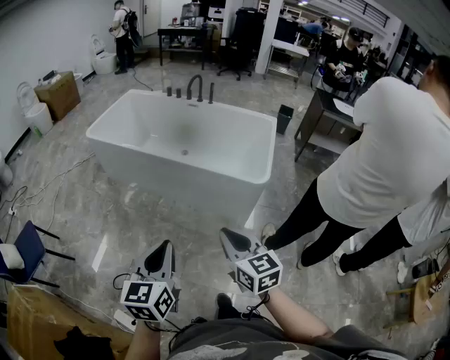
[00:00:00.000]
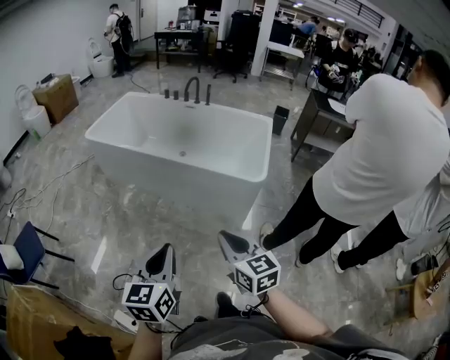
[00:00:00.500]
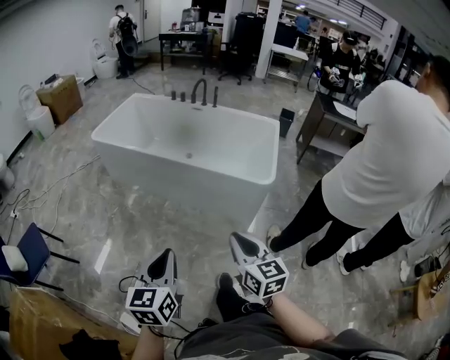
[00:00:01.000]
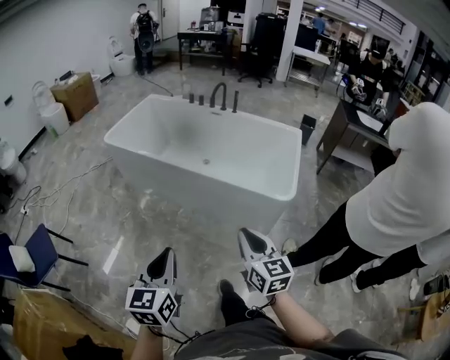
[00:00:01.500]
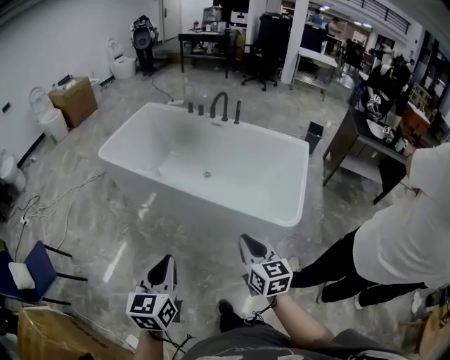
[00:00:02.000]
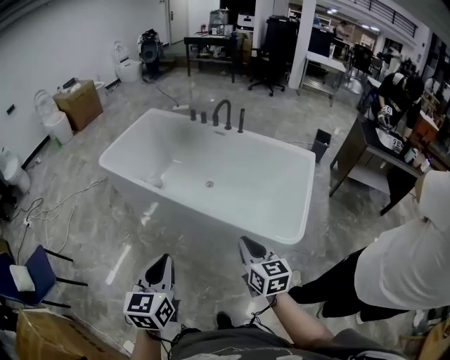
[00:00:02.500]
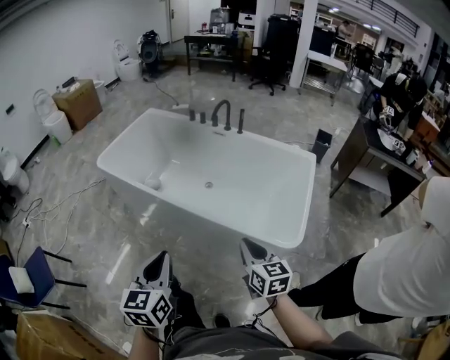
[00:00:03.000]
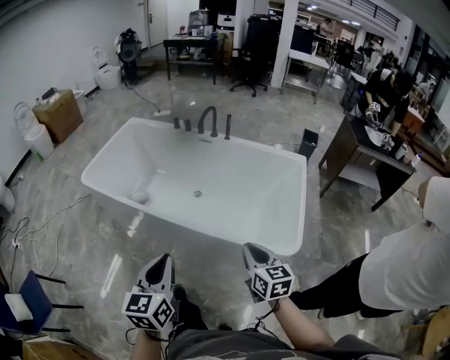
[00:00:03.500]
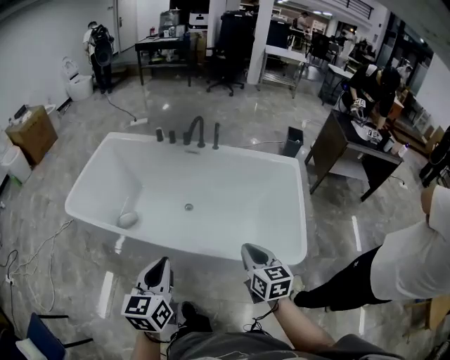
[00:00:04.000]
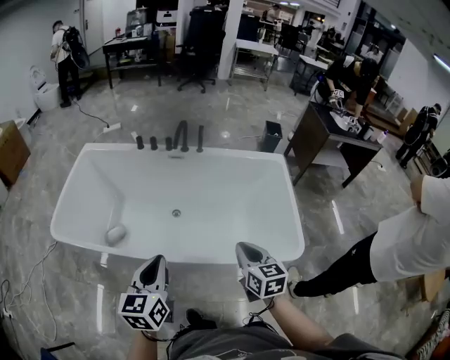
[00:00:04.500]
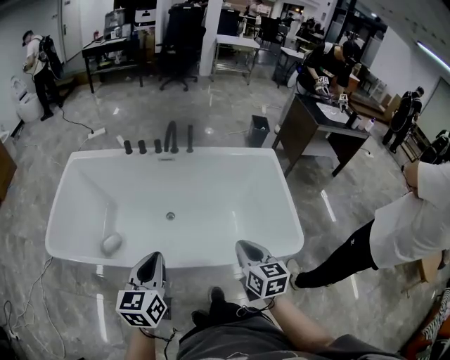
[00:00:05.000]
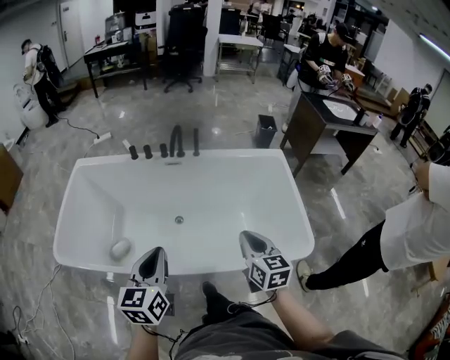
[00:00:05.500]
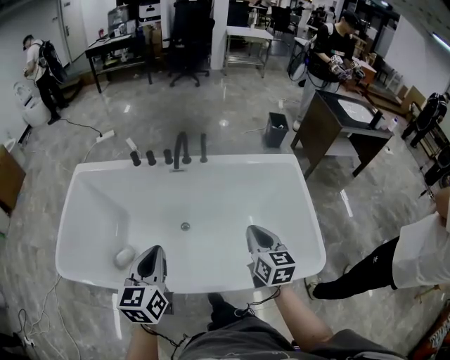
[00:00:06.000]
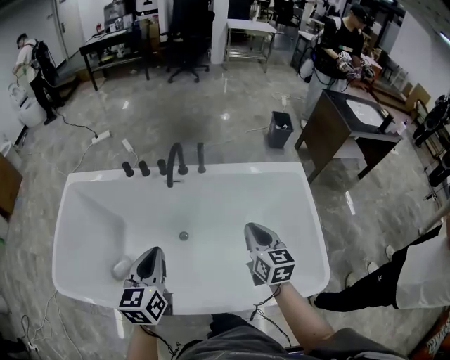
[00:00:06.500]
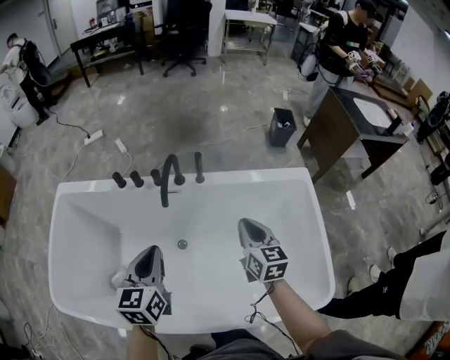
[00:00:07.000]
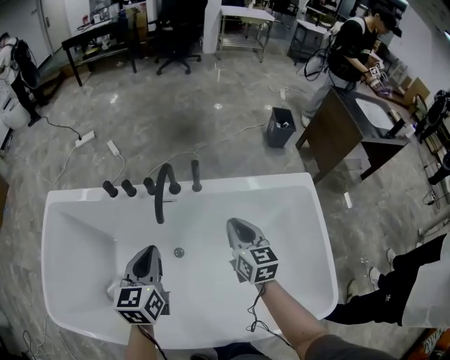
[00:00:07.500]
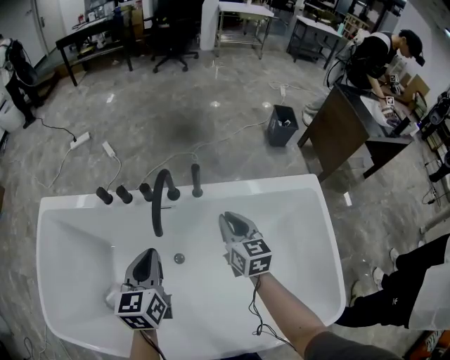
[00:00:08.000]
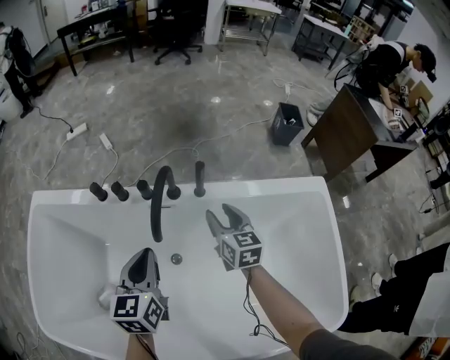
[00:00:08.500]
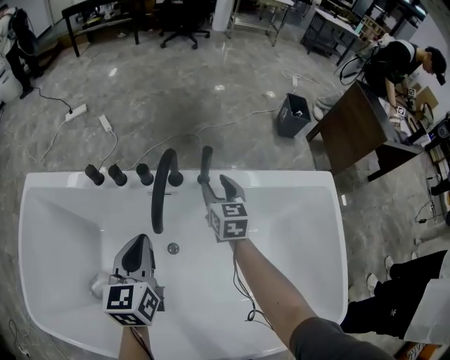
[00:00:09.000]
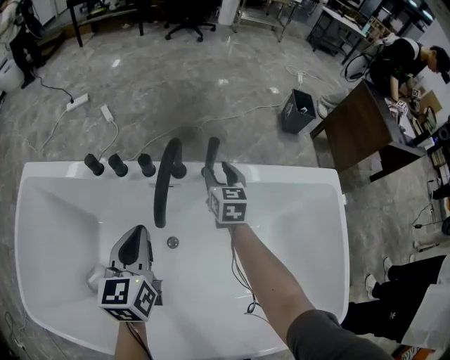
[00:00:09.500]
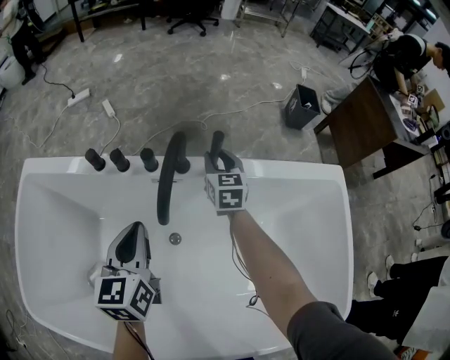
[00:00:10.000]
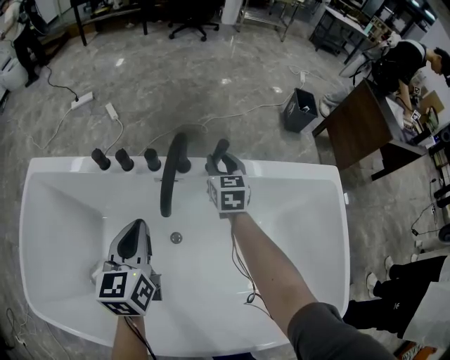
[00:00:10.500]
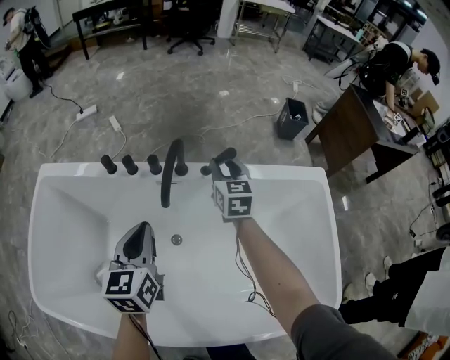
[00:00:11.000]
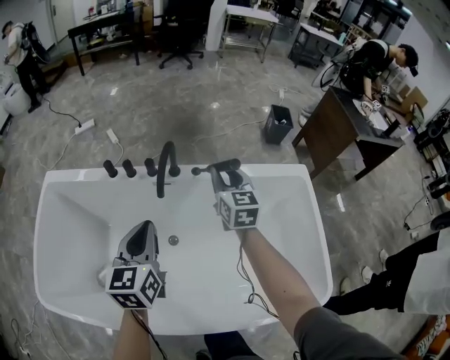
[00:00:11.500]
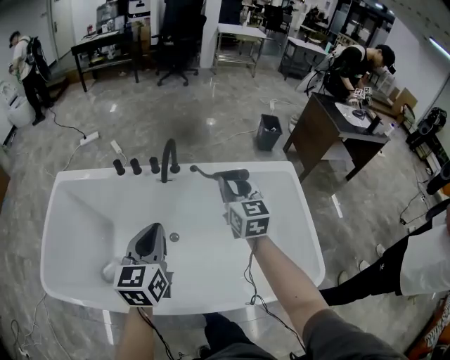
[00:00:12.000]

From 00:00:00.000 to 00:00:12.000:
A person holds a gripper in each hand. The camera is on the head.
From 00:00:00.000 to 00:00:02.000: Both grippers move forward, some 25 cm.
From 00:00:02.000 to 00:00:04.000: The two grippers go some 30 cm forward.
From 00:00:04.000 to 00:00:06.000: The grippers both shift forward by roughly 25 cm.
From 00:00:06.000 to 00:00:08.000: The right gripper heads forward, covering some 40 cm, while the left gripper shifts roughly 40 cm forward and downward.
From 00:00:08.000 to 00:00:10.000: The right gripper moves forward and downward, some 20 cm, and opens up, while the left gripper heads downward and forward, covering about 10 cm.
From 00:00:10.000 to 00:00:12.000: The two grippers go about 40 cm backward and upward.

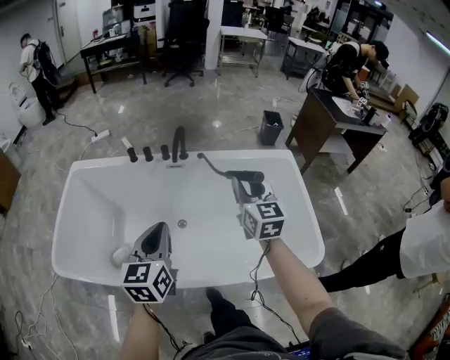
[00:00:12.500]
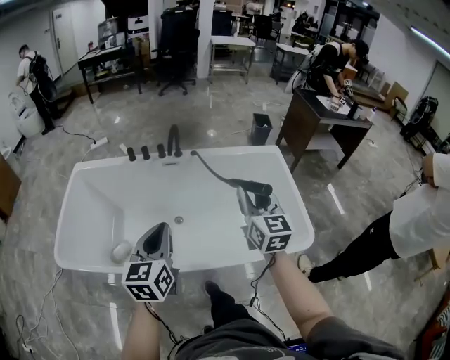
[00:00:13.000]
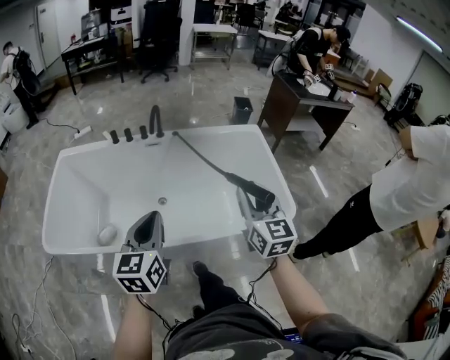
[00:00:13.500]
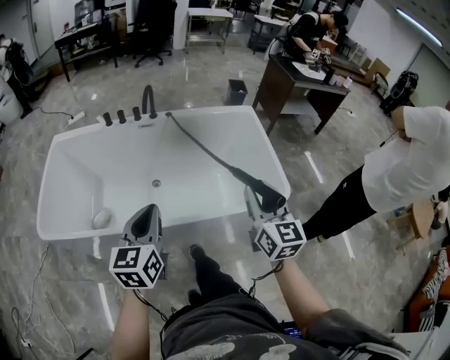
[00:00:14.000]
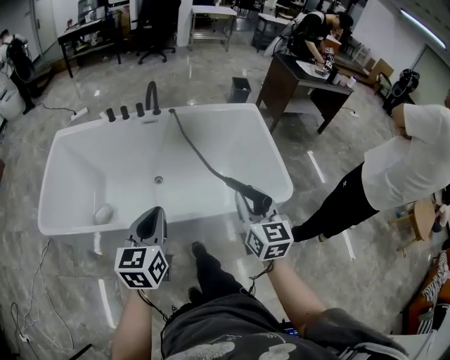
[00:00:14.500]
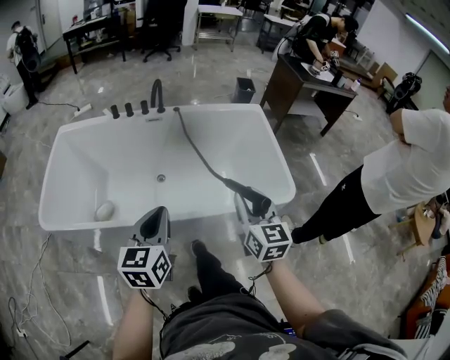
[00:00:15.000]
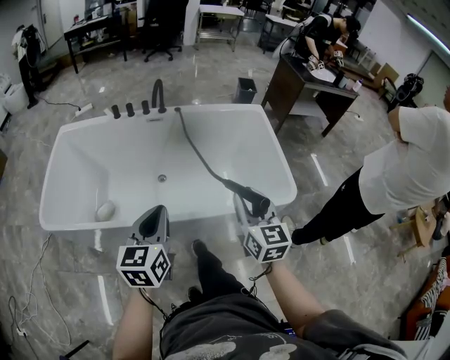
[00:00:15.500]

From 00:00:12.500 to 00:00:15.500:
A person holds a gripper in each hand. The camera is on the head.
From 00:00:12.500 to 00:00:14.000: The left gripper travels backward by approximately 20 cm. The right gripper heads backward, covering roughly 35 cm.
From 00:00:14.000 to 00:00:15.500: The right gripper travels downward by roughly 5 cm.

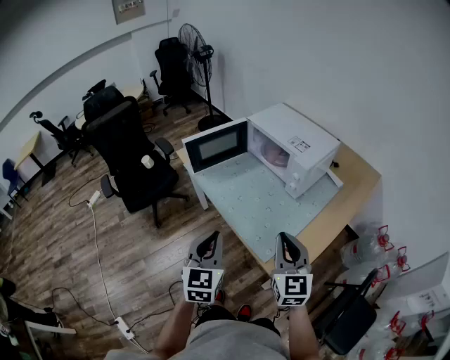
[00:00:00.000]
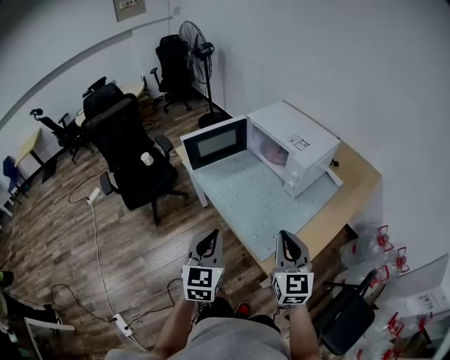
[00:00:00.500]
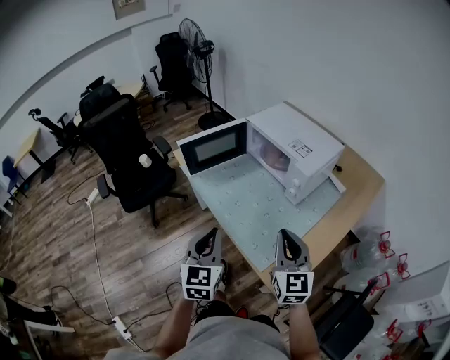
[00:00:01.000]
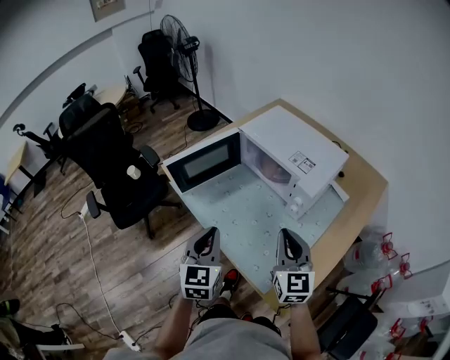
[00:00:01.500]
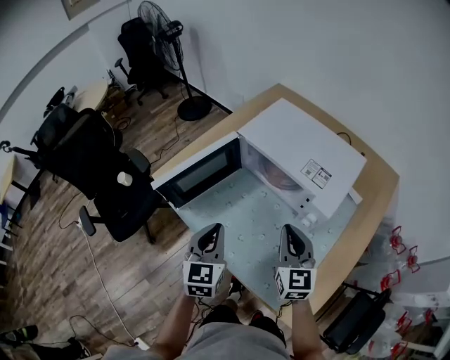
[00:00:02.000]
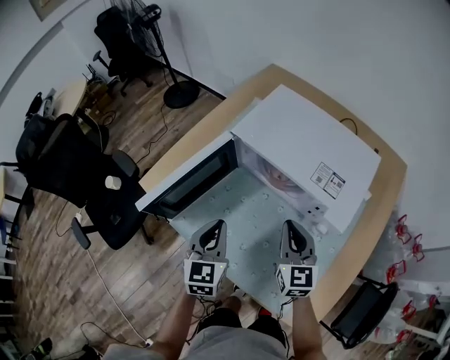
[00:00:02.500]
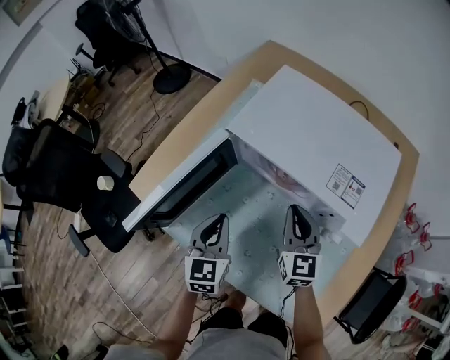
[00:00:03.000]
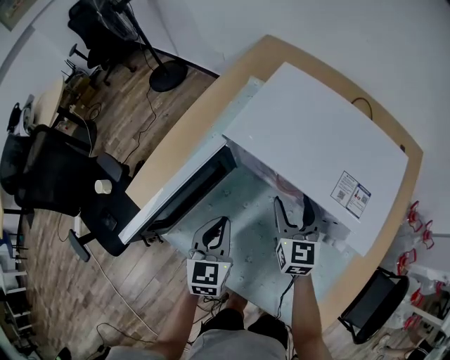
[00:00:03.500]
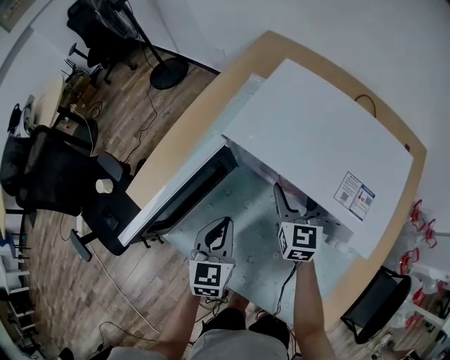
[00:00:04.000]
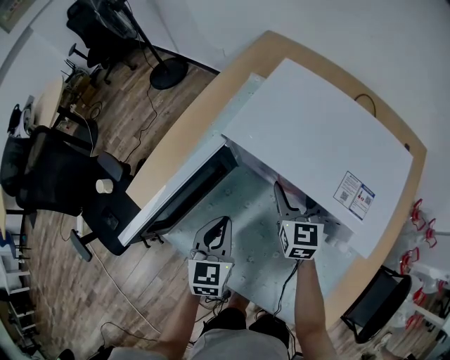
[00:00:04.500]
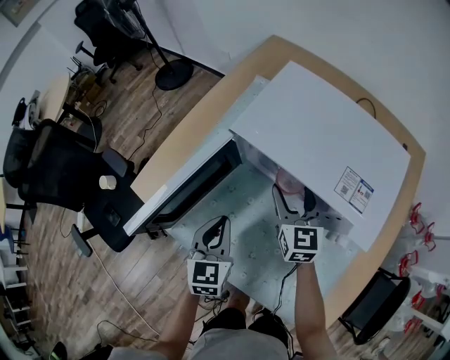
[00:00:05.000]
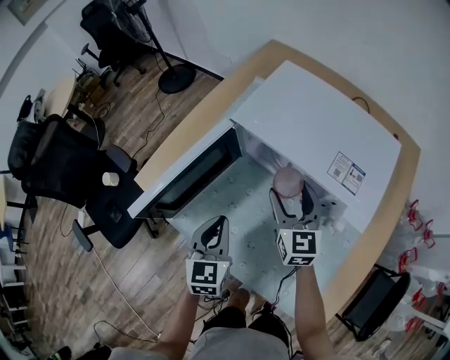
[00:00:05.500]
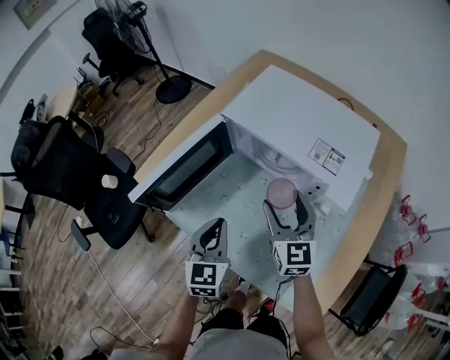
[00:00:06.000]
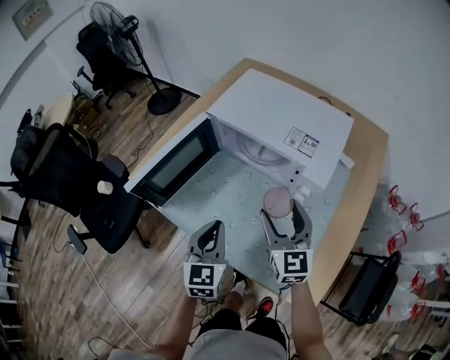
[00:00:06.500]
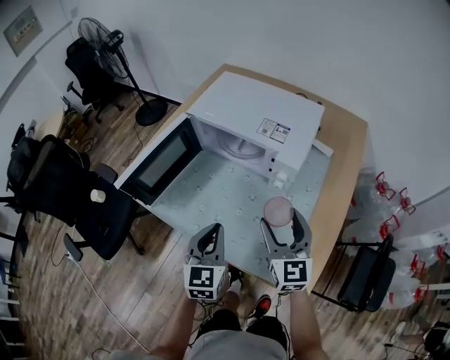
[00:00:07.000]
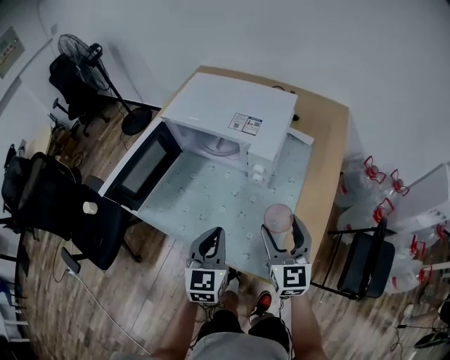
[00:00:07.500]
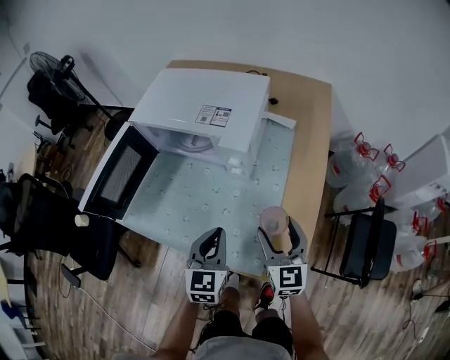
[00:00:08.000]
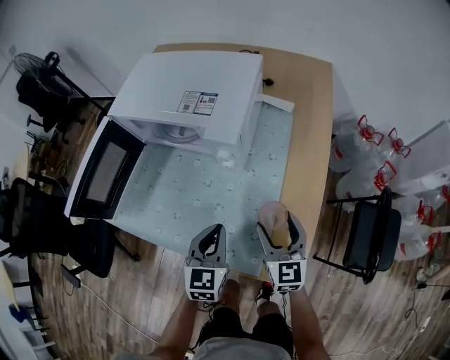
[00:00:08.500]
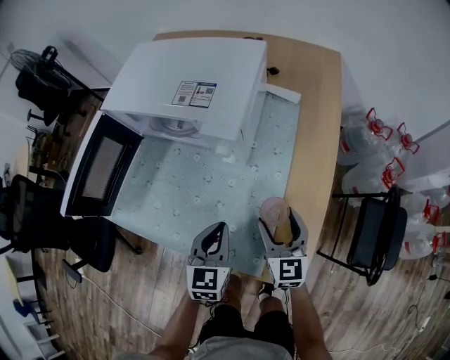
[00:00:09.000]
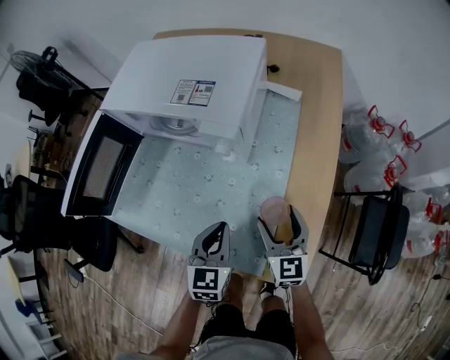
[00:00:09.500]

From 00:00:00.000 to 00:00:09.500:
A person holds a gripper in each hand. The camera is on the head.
From 00:00:00.000 to 00:00:02.000: Both grippers travel together forward, about 30 cm.
From 00:00:02.000 to 00:00:04.000: The two grippers go roughly 25 cm forward and downward. The right gripper opens up.
From 00:00:04.000 to 00:00:05.500: The grippers both shift backward by about 5 cm.
From 00:00:05.500 to 00:00:07.500: The left gripper moves to the right and backward, about 25 cm; the right gripper moves backward and to the right, some 30 cm.
From 00:00:07.500 to 00:00:09.500: The right gripper shifts roughly 15 cm downward. Meanwhile the left gripper is displaced downward and to the right by approximately 15 cm.

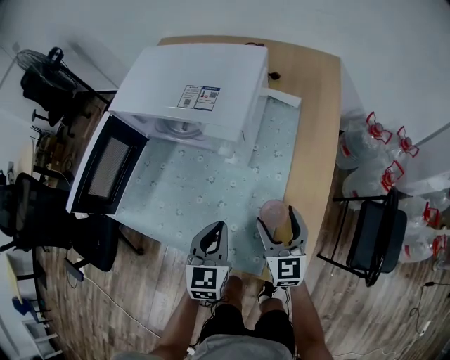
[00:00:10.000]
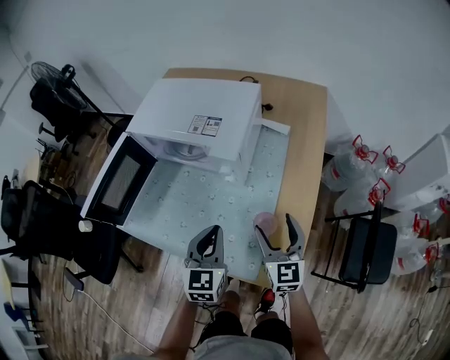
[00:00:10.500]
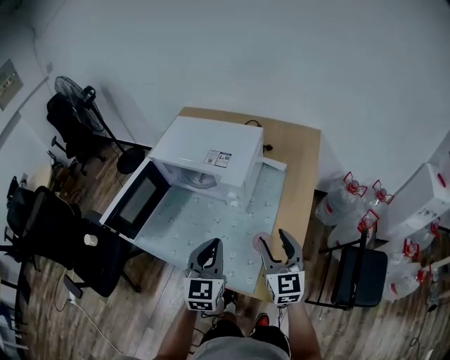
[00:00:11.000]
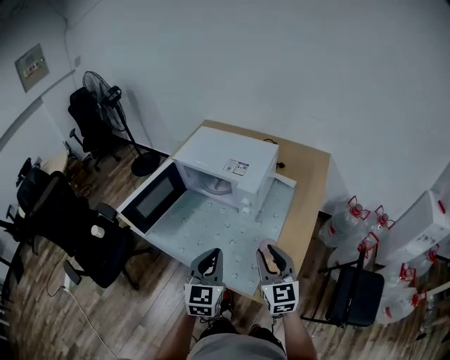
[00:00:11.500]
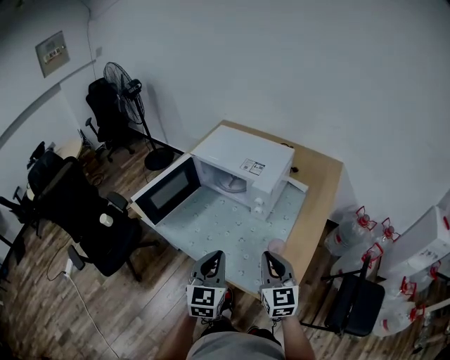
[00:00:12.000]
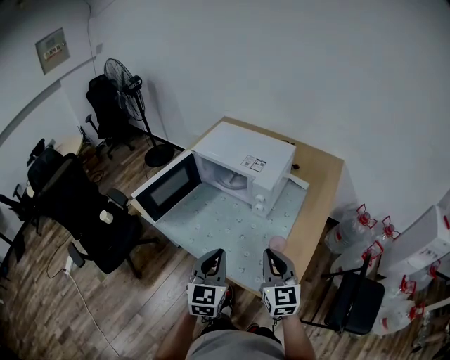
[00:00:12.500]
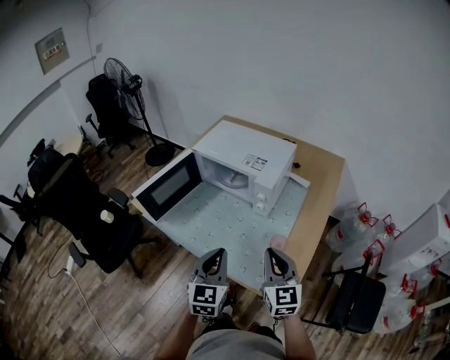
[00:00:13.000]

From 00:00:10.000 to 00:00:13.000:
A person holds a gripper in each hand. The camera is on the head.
From 00:00:10.000 to 00:00:11.500: The two grippers go some 20 cm upward. The right gripper closes.
From 00:00:11.500 to 00:00:13.000: The grippers move only a little.
